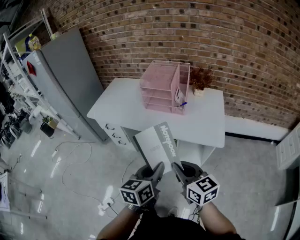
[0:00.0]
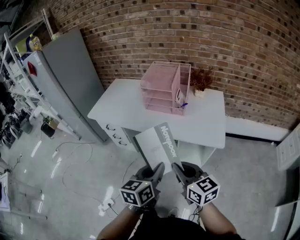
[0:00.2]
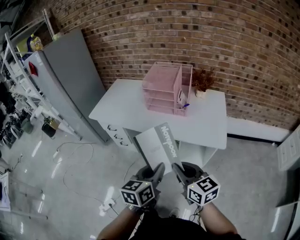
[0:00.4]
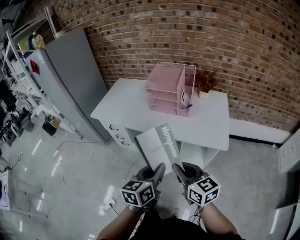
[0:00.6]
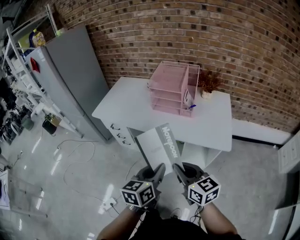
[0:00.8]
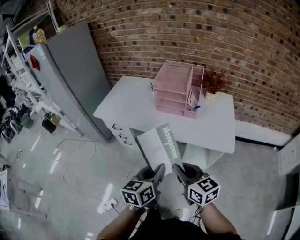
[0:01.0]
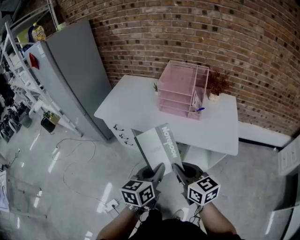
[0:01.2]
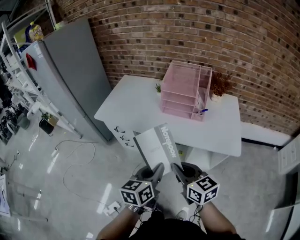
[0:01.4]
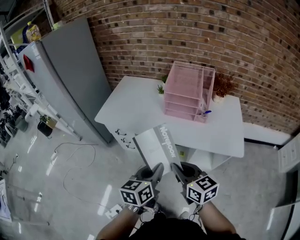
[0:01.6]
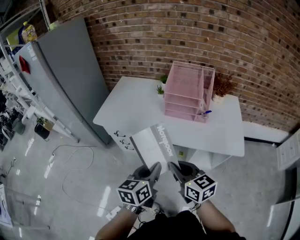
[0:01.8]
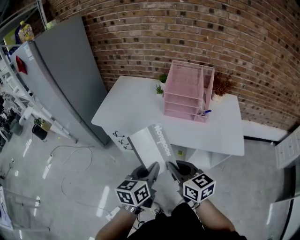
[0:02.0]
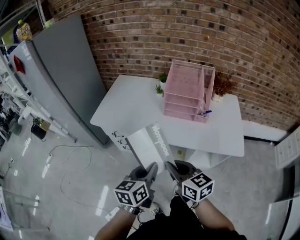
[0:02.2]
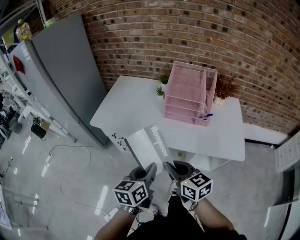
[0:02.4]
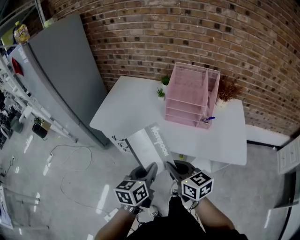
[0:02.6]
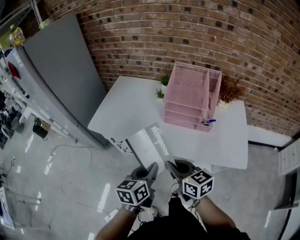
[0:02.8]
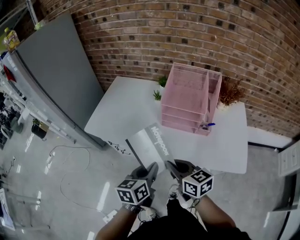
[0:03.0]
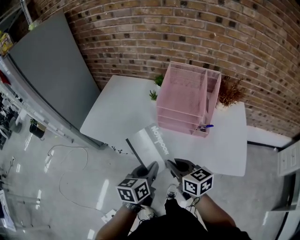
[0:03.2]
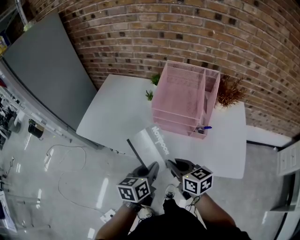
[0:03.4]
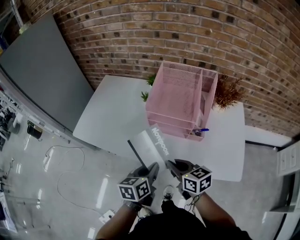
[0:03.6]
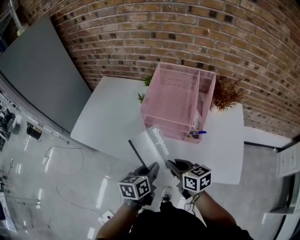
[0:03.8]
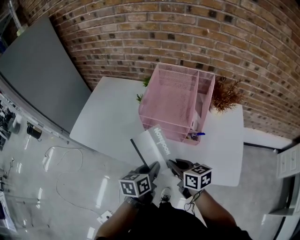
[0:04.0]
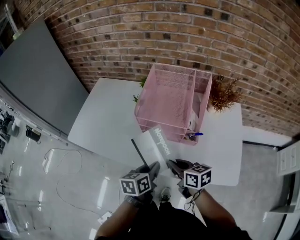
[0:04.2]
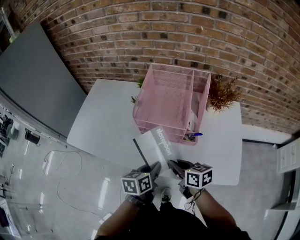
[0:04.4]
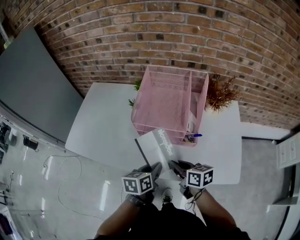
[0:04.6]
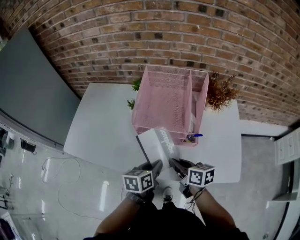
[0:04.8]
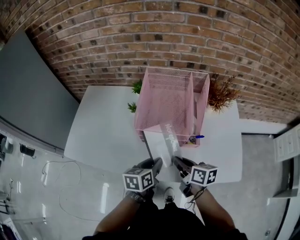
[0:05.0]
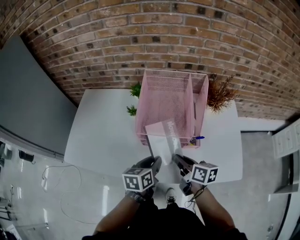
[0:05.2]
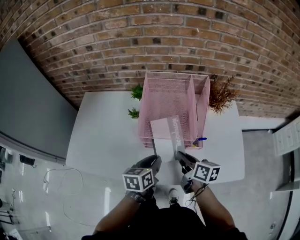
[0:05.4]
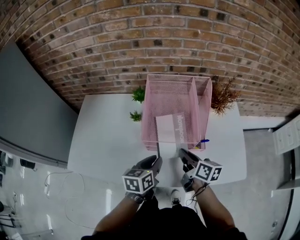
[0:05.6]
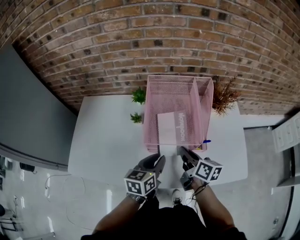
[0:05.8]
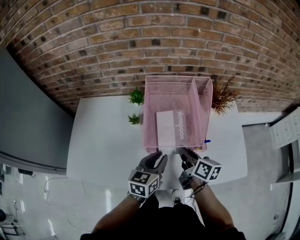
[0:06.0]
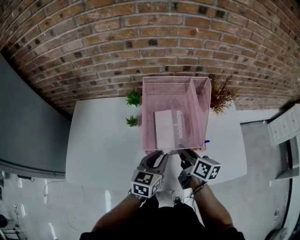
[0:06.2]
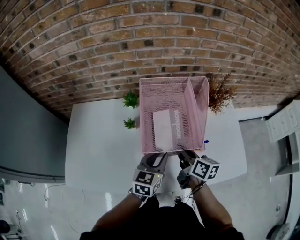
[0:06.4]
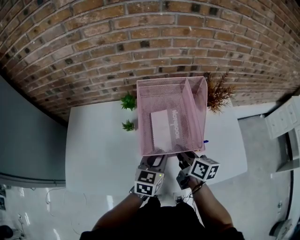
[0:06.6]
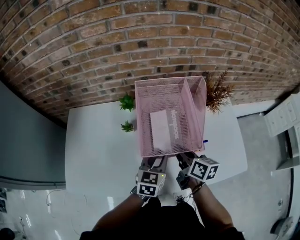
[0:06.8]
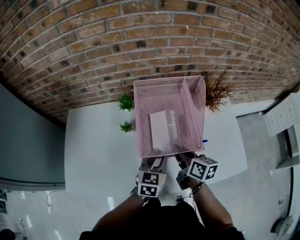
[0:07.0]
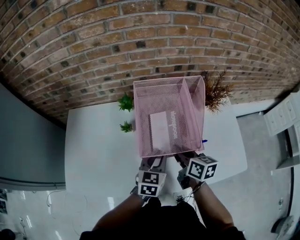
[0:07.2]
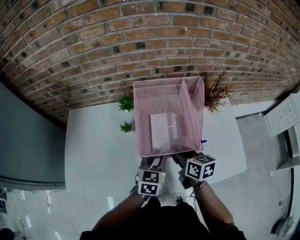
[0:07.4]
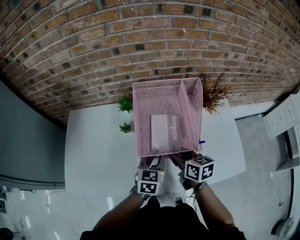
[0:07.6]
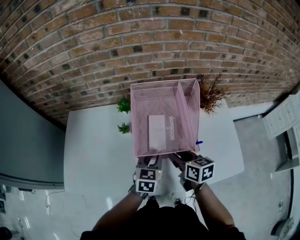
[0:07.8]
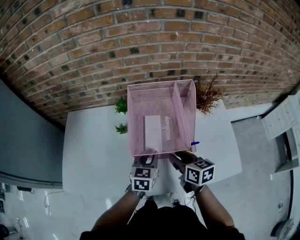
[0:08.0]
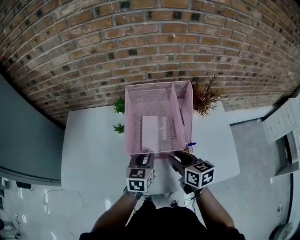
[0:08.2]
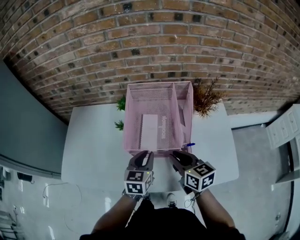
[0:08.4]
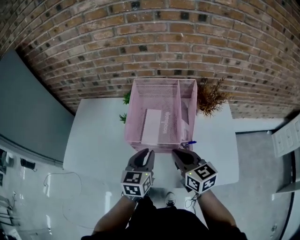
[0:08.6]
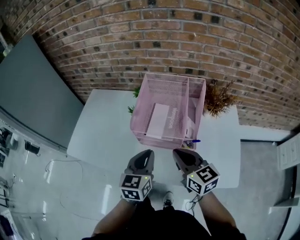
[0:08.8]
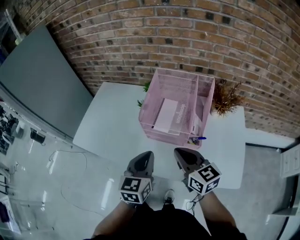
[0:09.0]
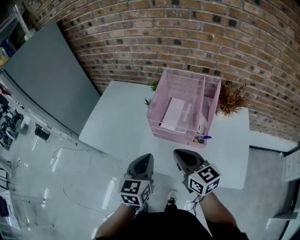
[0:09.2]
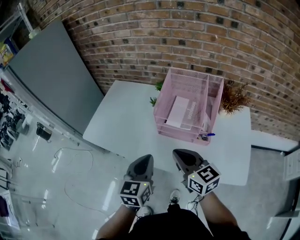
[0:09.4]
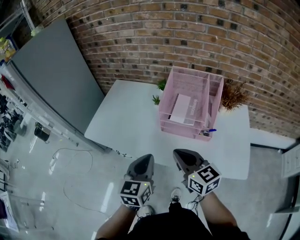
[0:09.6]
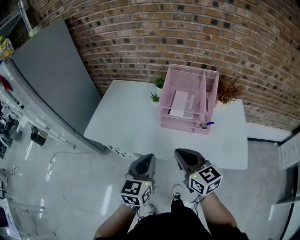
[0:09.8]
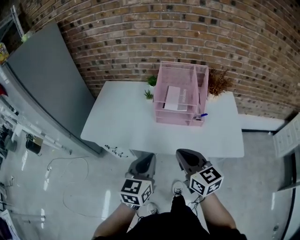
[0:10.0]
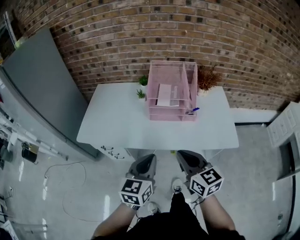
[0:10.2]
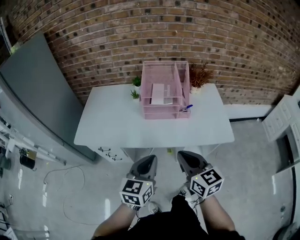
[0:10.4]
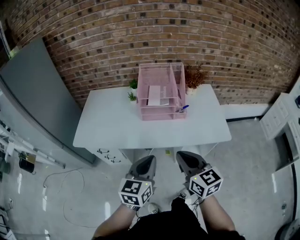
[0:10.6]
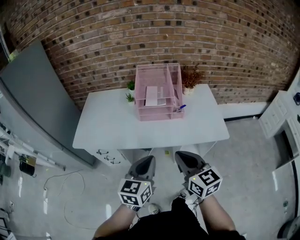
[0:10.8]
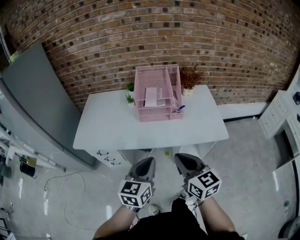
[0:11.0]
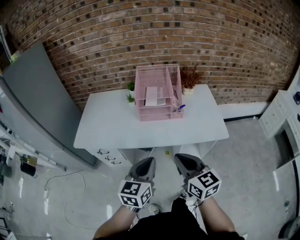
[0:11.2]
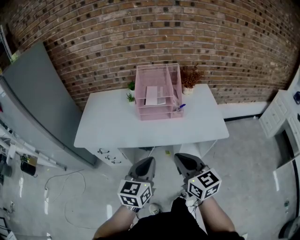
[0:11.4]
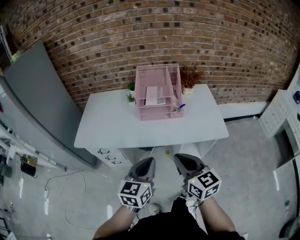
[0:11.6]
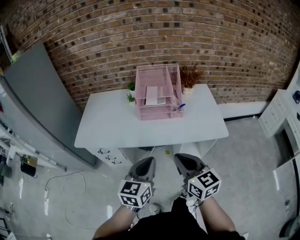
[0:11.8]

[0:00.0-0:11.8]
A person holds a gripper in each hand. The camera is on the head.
0:00.0 to 0:01.4: Both grippers move to the left and forward, approximately 15 cm.
0:01.4 to 0:03.0: Both grippers move forward, roughly 15 cm.
0:03.0 to 0:04.4: The grippers both shift to the right, forward and downward by some 20 cm.
0:04.4 to 0:06.0: The two grippers go roughly 15 cm forward. The left gripper changes its angle by some 30 degrees. The right gripper rotates roughly 40 degrees.
0:06.0 to 0:07.4: The right gripper opens.
0:07.4 to 0:08.8: Both grippers travel together backward and upward, approximately 15 cm. The left gripper rotates roughly 20 degrees. Meanwhile the right gripper swivels roughly 30 degrees, and closes.
0:08.8 to 0:10.4: The grippers both shift backward and to the left by about 25 cm.
0:10.4 to 0:11.8: The right gripper moves backward, approximately 5 cm; the left gripper shifts by some 5 cm.

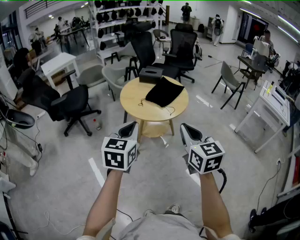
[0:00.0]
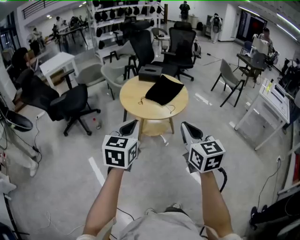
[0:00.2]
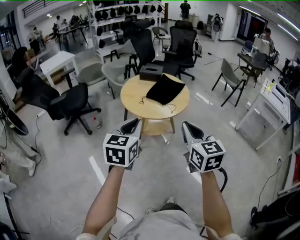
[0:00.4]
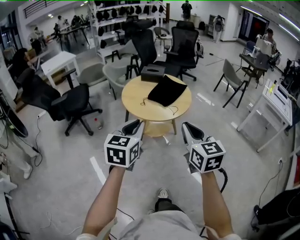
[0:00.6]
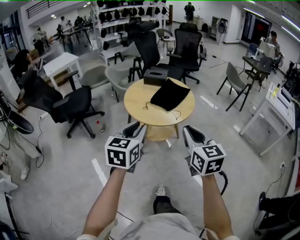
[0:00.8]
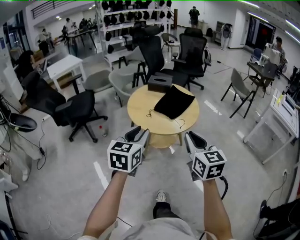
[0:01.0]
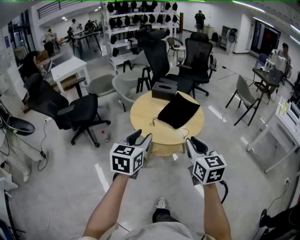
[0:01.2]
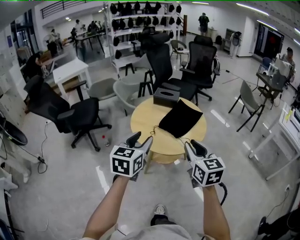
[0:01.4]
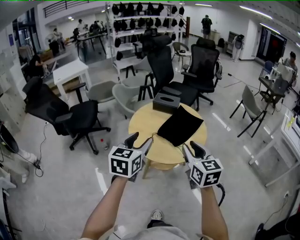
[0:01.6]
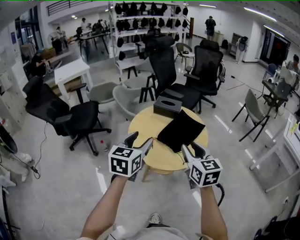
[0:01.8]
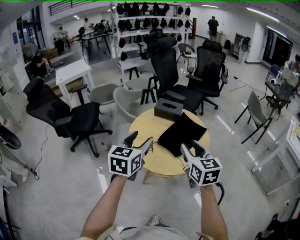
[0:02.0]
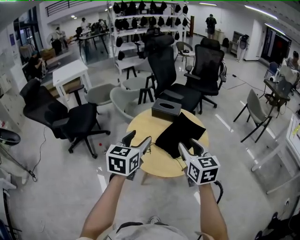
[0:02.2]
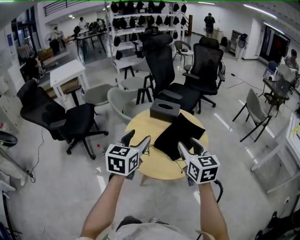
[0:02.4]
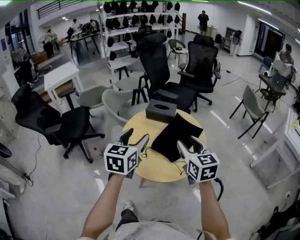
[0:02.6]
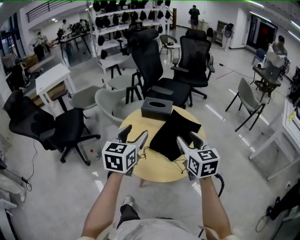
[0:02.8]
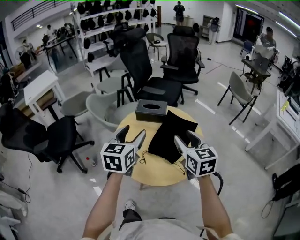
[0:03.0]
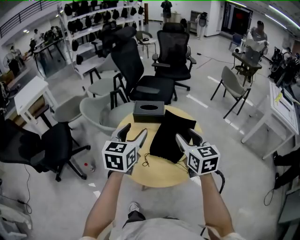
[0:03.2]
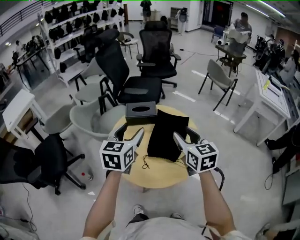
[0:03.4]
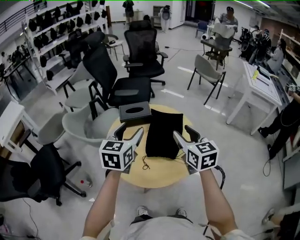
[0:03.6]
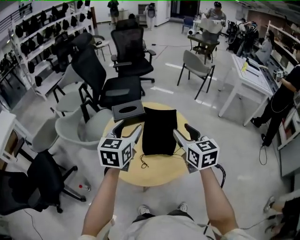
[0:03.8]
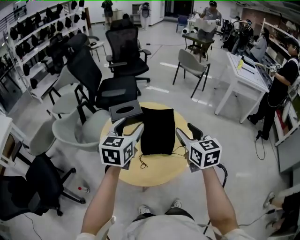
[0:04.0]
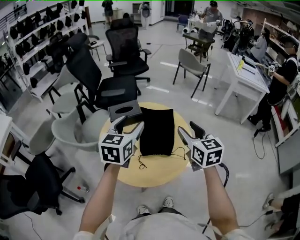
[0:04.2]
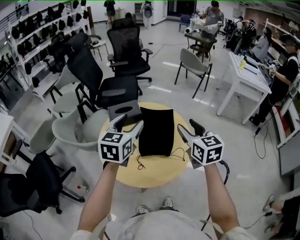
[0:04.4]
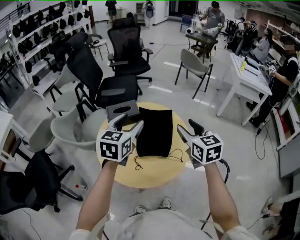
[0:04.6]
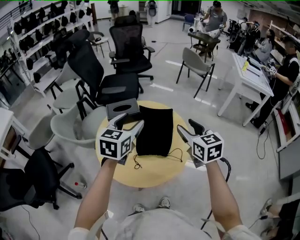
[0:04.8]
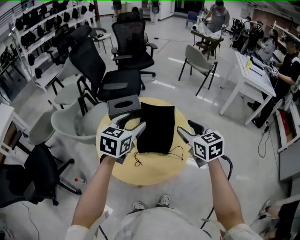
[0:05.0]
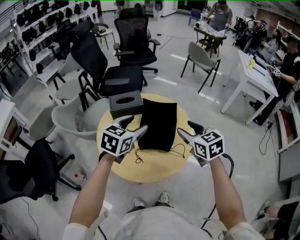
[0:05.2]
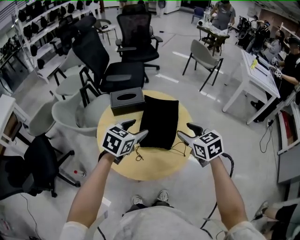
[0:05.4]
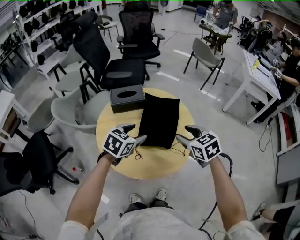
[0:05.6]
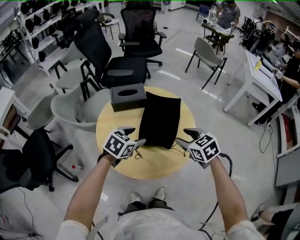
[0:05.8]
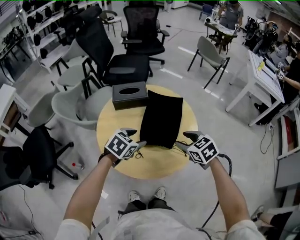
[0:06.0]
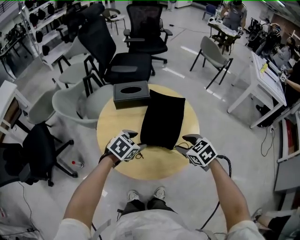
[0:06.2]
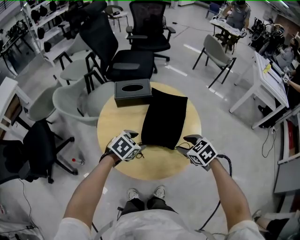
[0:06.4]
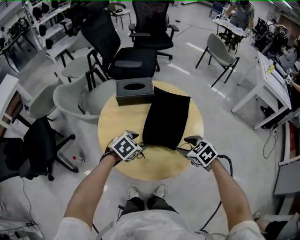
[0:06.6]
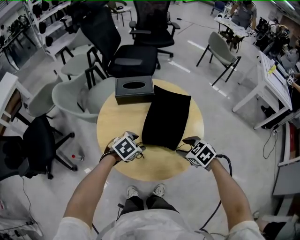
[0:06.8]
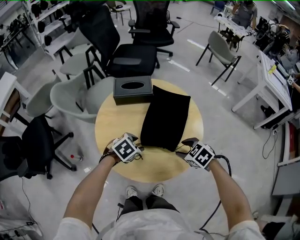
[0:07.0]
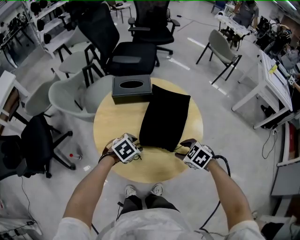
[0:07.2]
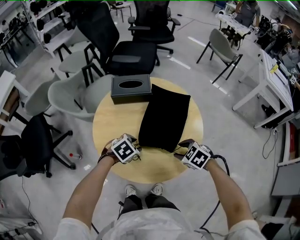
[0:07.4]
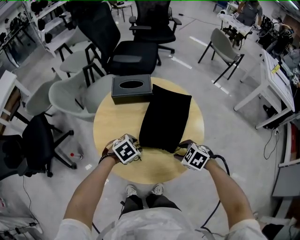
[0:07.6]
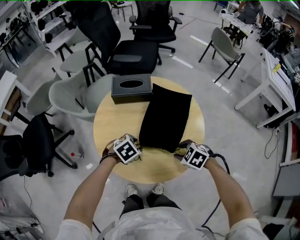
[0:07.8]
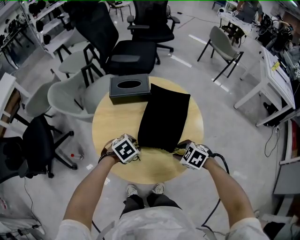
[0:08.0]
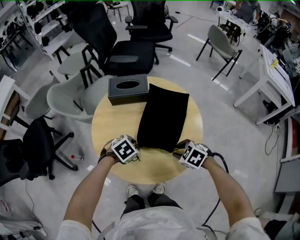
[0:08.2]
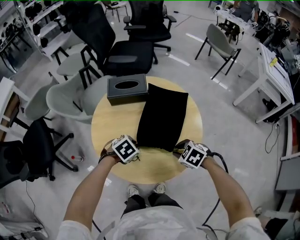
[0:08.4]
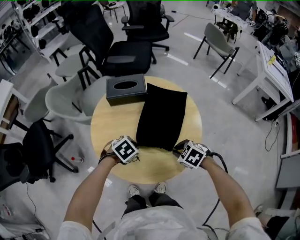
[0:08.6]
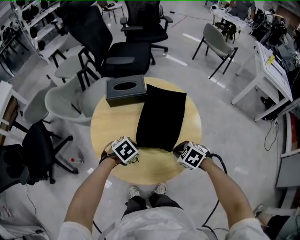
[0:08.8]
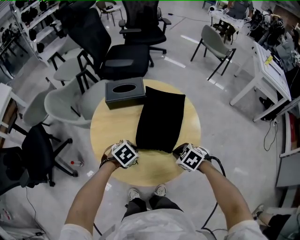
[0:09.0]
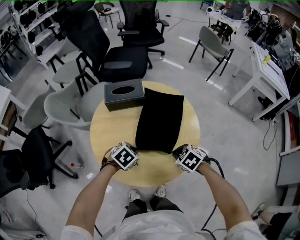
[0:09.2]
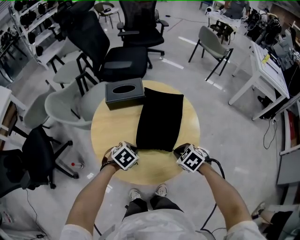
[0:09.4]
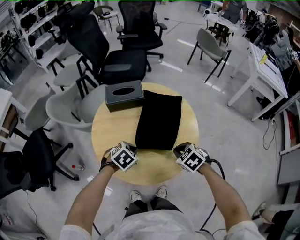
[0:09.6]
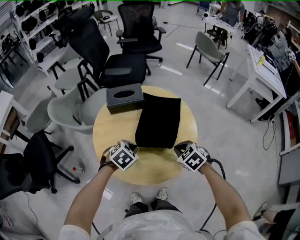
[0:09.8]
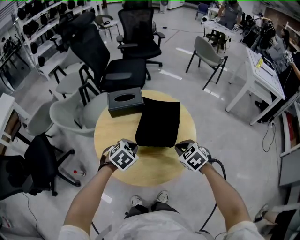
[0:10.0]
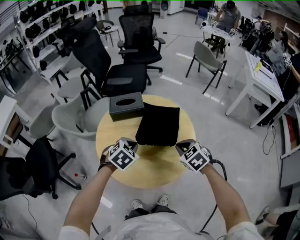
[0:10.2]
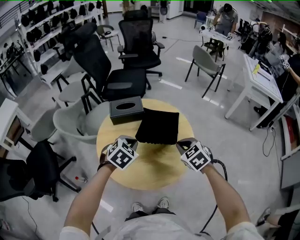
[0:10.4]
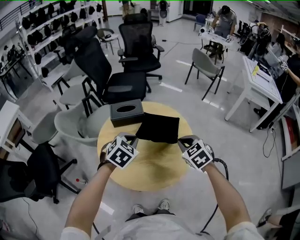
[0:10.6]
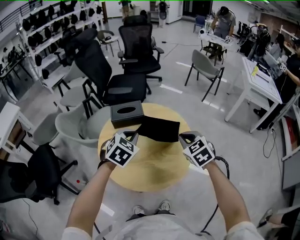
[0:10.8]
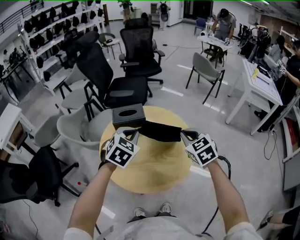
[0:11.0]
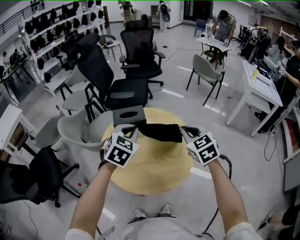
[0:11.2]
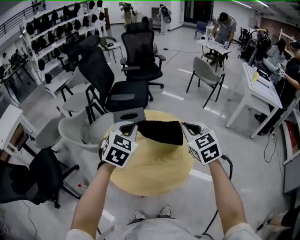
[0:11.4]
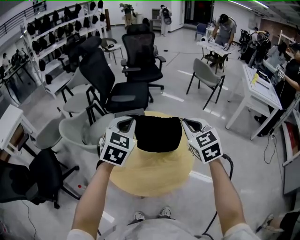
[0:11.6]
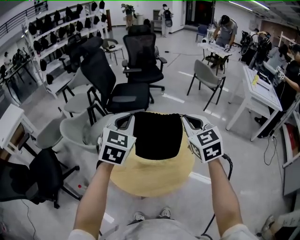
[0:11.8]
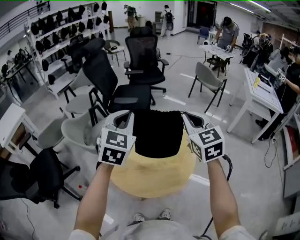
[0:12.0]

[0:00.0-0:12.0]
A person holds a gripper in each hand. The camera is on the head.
0:00.0 to 0:01.6: Both grippers move forward, roughly 25 cm. The left gripper opens. Meanwhile the right gripper opens its fingers.
0:01.6 to 0:03.0: The grippers both shift forward by about 20 cm.
0:03.0 to 0:04.4: The right gripper shifts by roughly 5 cm, and swivels approximately 30 degrees. Meanwhile the left gripper ends up some 10 cm from where it was, and rotates roughly 30 degrees.
0:04.4 to 0:06.0: Both grippers move downward, some 20 cm. The left gripper angles its fingers downward, by about 30 degrees; the right gripper tilts its fingers roughly 30 degrees downward.
0:06.0 to 0:07.6: The two grippers go about 10 cm downward. The right gripper rotates approximately 30 degrees.
0:07.6 to 0:09.0: The right gripper closes. Meanwhile the left gripper closes up.
0:09.0 to 0:10.4: Both grippers travel together upward, approximately 15 cm. The right gripper turns by approximately 30 degrees; the left gripper swivels approximately 30 degrees.
0:10.4 to 0:12.0: The grippers both shift upward by some 25 cm. The right gripper angles its fingers upward, by approximately 40 degrees. Meanwhile the left gripper points its fingers approximately 40 degrees further upward.
